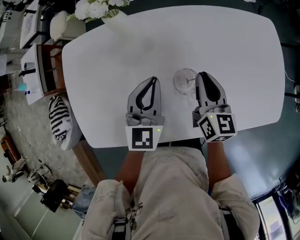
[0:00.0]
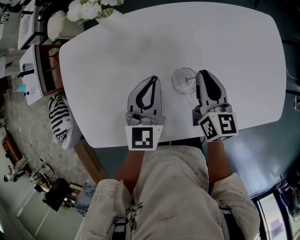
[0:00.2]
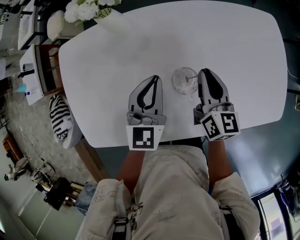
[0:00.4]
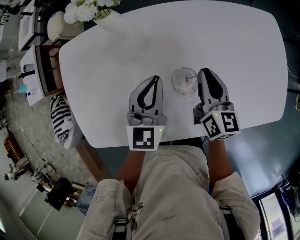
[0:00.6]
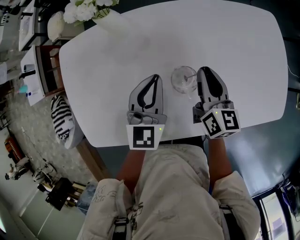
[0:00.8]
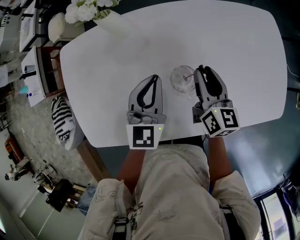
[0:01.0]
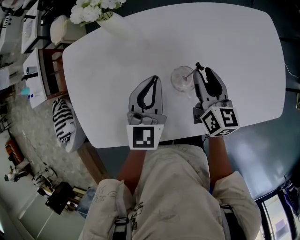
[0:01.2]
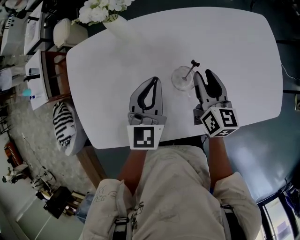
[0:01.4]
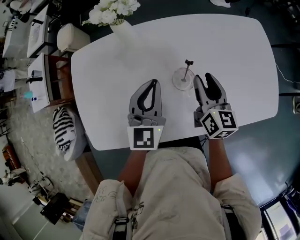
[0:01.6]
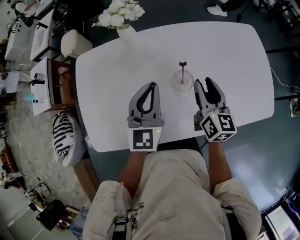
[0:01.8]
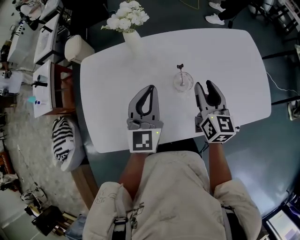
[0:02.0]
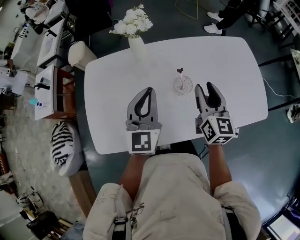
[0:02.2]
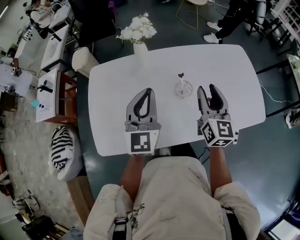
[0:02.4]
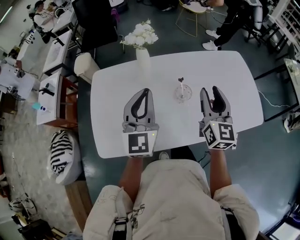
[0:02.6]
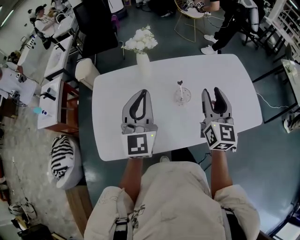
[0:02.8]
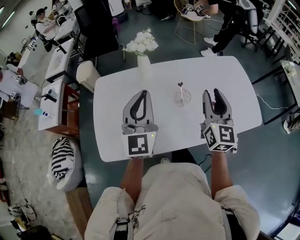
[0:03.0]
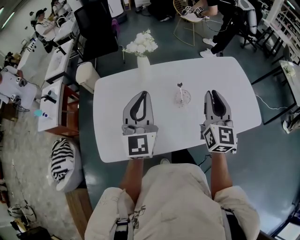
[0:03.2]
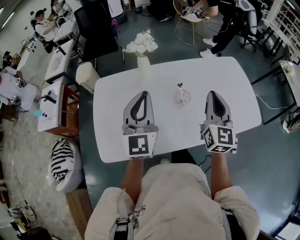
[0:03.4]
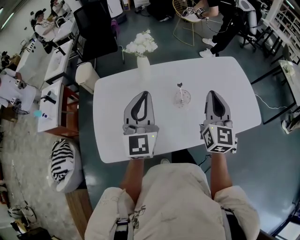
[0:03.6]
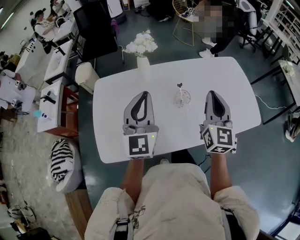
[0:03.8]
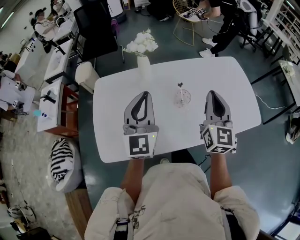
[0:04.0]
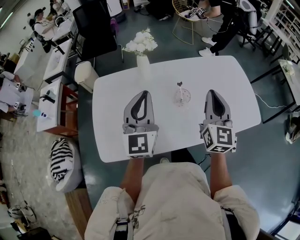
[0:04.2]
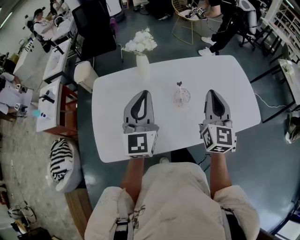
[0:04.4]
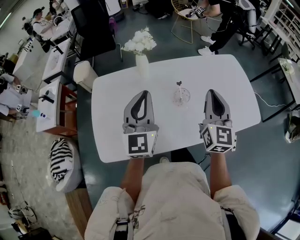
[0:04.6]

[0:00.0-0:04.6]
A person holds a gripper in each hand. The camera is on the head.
0:00.0 to 0:01.6: The right gripper moves roughly 5 cm, and opens up; the left gripper moves upward, some 5 cm.
0:01.6 to 0:03.0: Both grippers move upward and backward, some 25 cm. The right gripper rotates about 30 degrees; the left gripper turns by about 20 degrees.
0:03.0 to 0:04.6: The right gripper closes up.

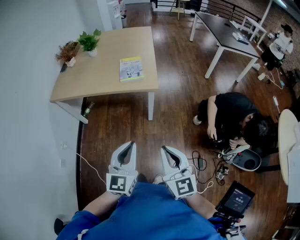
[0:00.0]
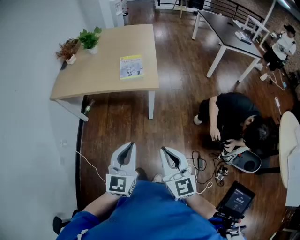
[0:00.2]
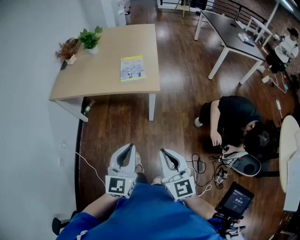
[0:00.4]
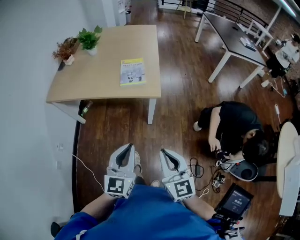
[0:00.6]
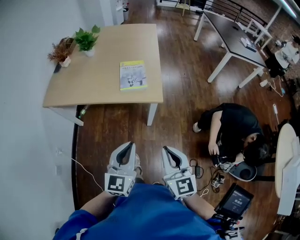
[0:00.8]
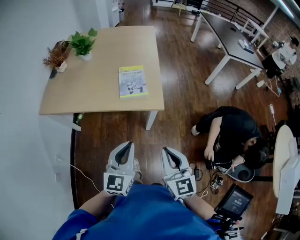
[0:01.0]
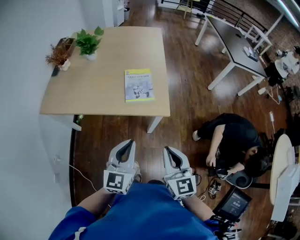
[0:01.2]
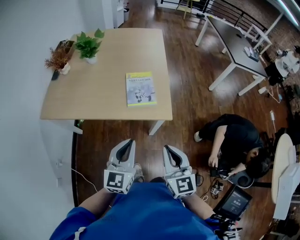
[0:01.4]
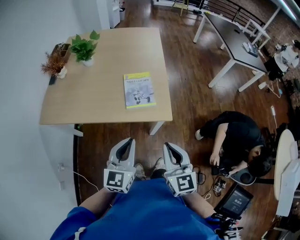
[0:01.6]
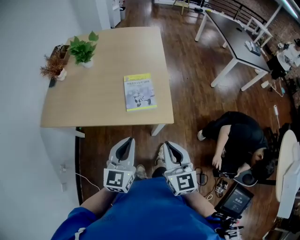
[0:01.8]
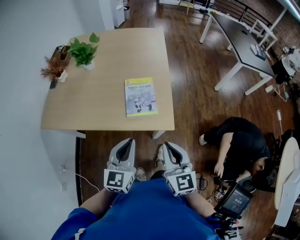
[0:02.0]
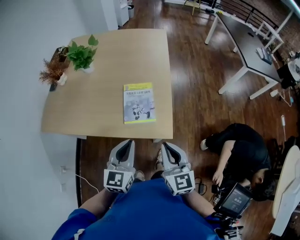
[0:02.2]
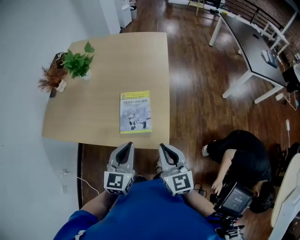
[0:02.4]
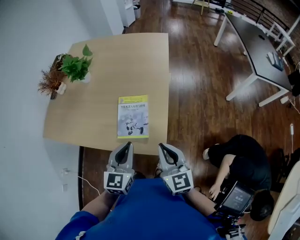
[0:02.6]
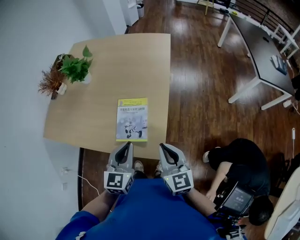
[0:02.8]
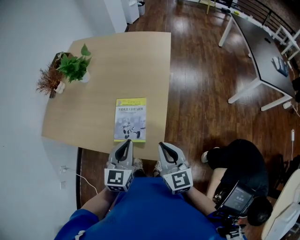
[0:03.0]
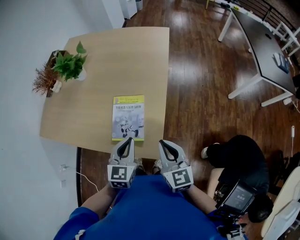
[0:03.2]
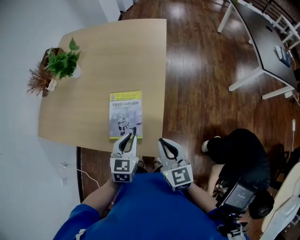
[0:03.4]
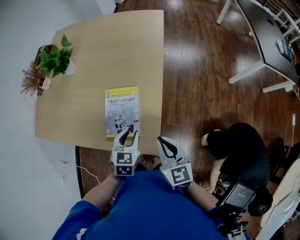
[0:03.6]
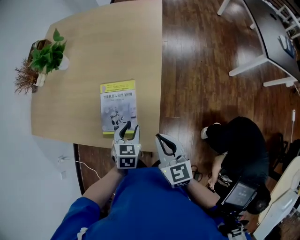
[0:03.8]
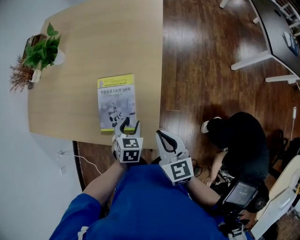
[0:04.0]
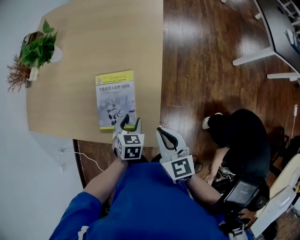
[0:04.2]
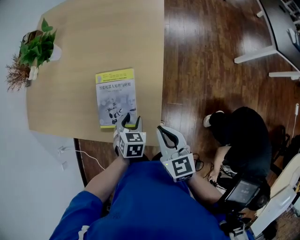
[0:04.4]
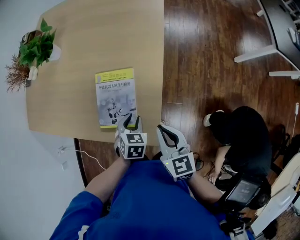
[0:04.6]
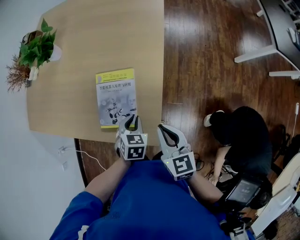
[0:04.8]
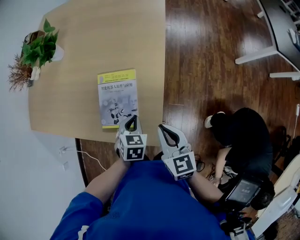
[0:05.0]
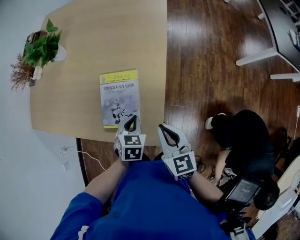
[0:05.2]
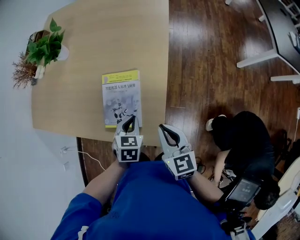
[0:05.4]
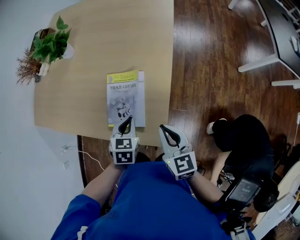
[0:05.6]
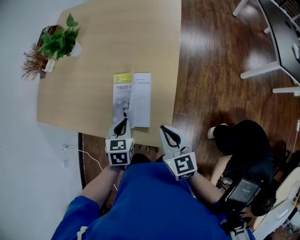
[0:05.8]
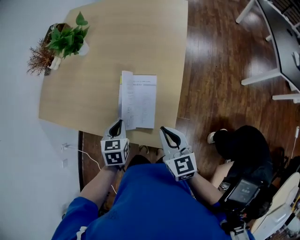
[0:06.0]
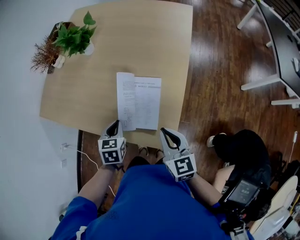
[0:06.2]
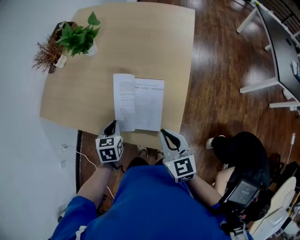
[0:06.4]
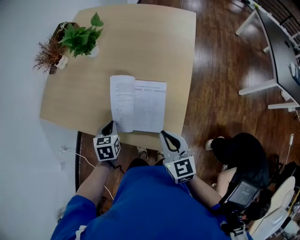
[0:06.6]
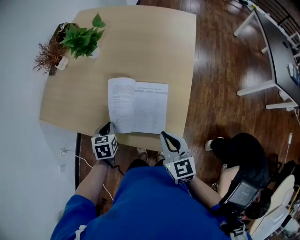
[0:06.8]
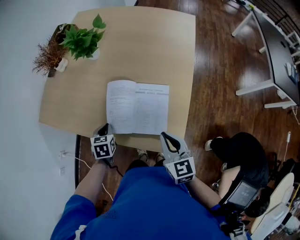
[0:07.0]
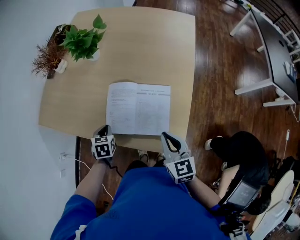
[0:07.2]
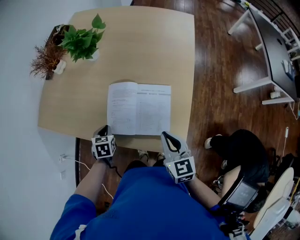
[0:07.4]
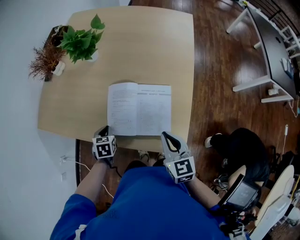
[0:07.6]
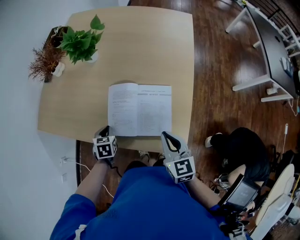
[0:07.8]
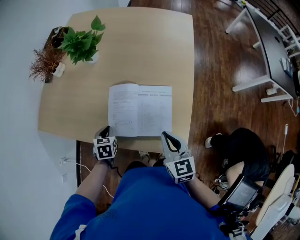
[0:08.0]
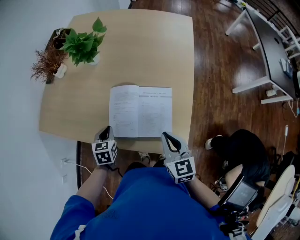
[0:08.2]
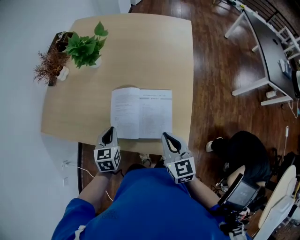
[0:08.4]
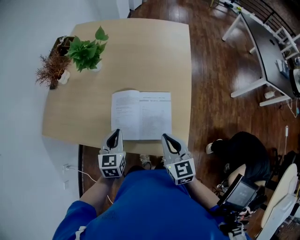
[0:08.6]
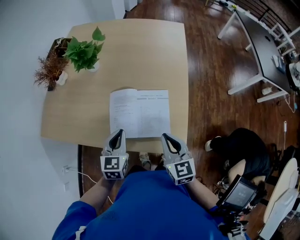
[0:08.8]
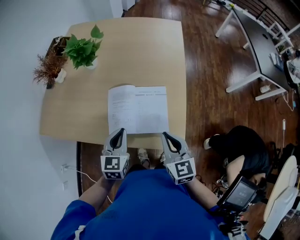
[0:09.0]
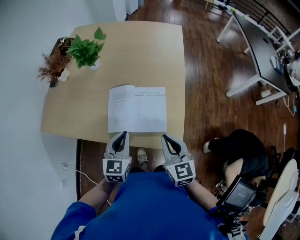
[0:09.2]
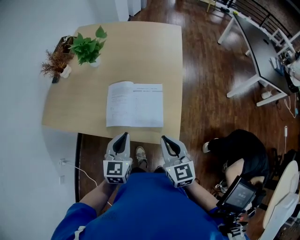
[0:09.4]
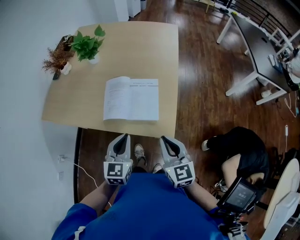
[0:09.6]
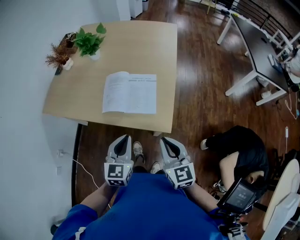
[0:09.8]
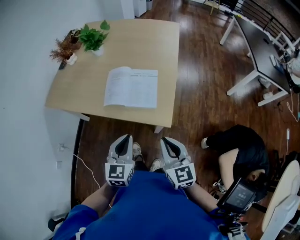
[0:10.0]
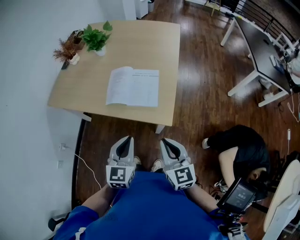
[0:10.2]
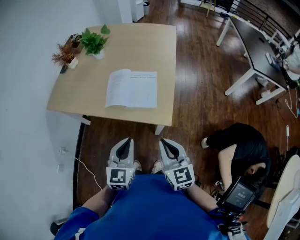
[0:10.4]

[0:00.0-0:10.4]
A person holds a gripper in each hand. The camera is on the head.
0:00.0 to 0:01.4: The two grippers go approximately 30 cm forward.
0:01.4 to 0:03.0: Both grippers travel together forward and to the right, some 30 cm.
0:03.0 to 0:04.4: The right gripper heads downward, covering approximately 10 cm; the left gripper travels downward by about 20 cm, points its fingers some 40 degrees further downward, and opens its fingers.
0:04.4 to 0:06.0: The left gripper goes roughly 15 cm to the left and upward, and closes up. The right gripper is displaced to the left by approximately 5 cm.
0:06.0 to 0:07.4: The right gripper moves to the left, about 10 cm. Meanwhile the left gripper shifts about 20 cm to the left.
0:07.4 to 0:09.0: The left gripper is displaced upward and to the right by approximately 15 cm, and tips its fingers upward by roughly 30 degrees. The right gripper shifts by about 5 cm.
0:09.0 to 0:10.4: Both grippers travel together backward, approximately 25 cm.

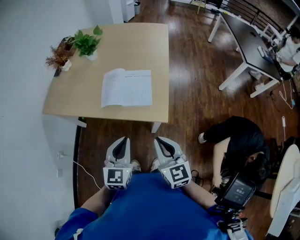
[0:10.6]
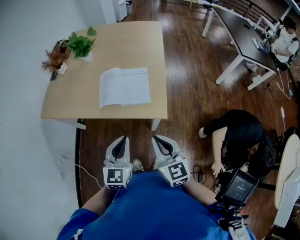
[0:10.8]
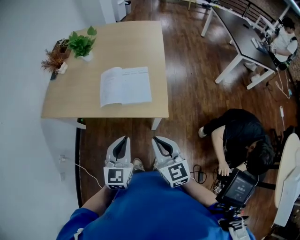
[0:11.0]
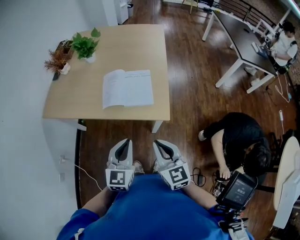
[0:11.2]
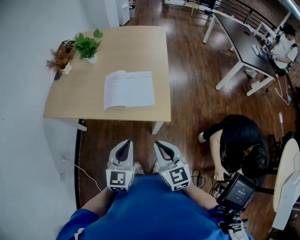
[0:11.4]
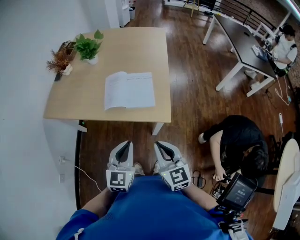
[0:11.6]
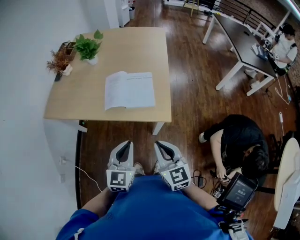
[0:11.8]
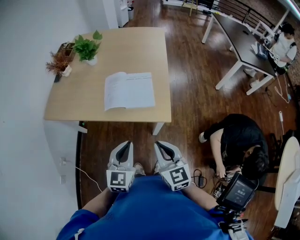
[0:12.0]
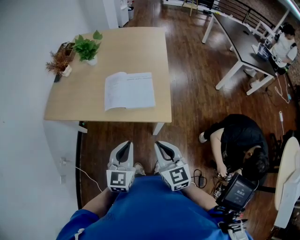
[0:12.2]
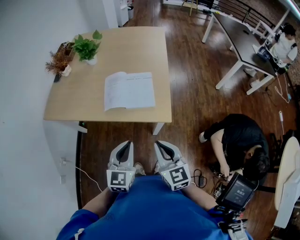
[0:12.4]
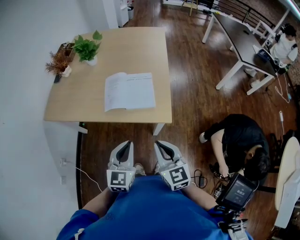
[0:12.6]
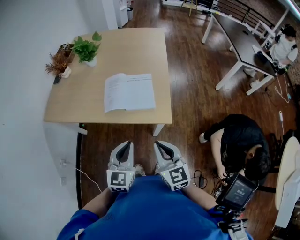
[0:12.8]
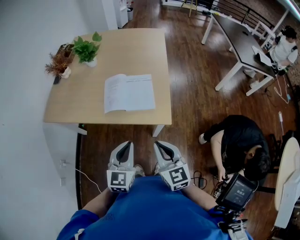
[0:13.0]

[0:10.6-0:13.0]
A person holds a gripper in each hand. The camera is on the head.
0:10.6 to 0:11.8: The grippers stay close to where they were, moving slightly.
0:11.8 to 0:13.0: Neither gripper changes place.

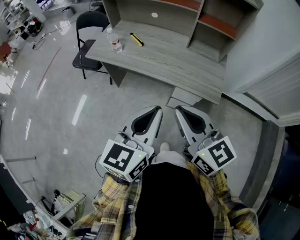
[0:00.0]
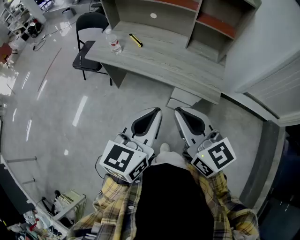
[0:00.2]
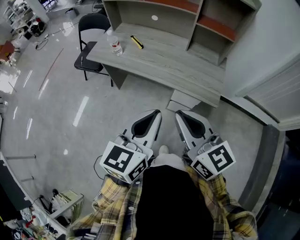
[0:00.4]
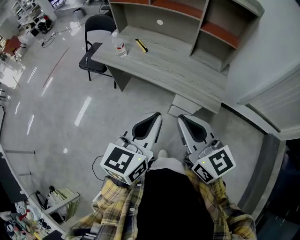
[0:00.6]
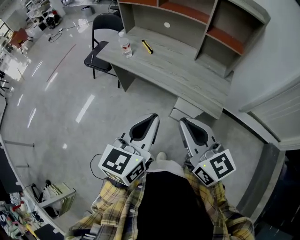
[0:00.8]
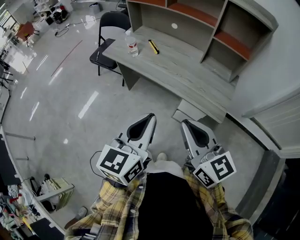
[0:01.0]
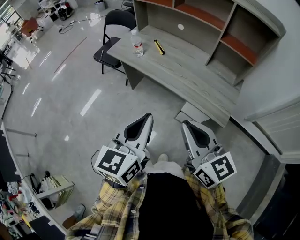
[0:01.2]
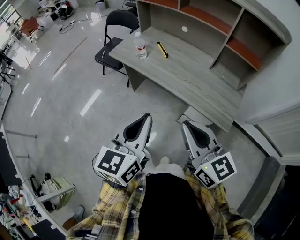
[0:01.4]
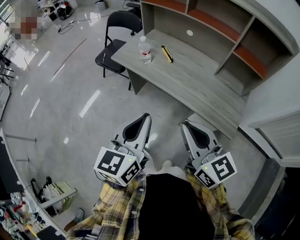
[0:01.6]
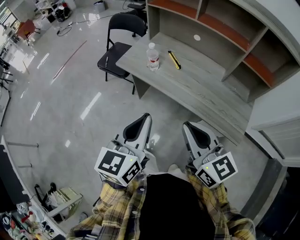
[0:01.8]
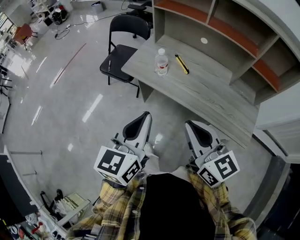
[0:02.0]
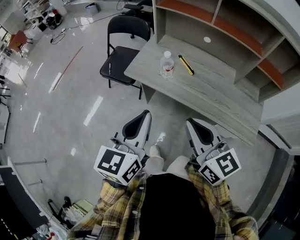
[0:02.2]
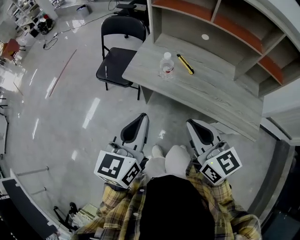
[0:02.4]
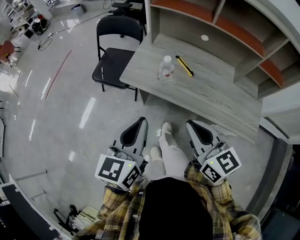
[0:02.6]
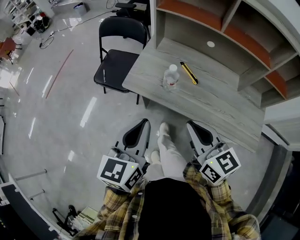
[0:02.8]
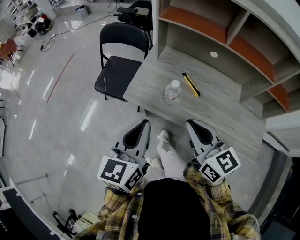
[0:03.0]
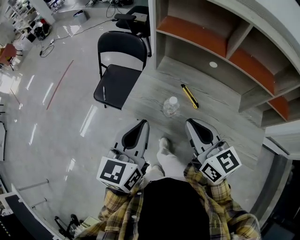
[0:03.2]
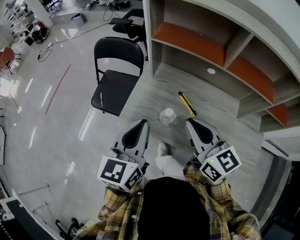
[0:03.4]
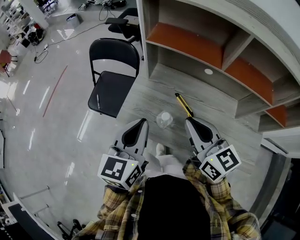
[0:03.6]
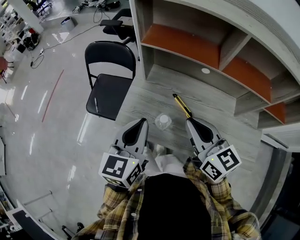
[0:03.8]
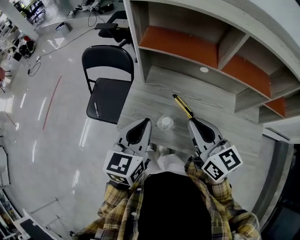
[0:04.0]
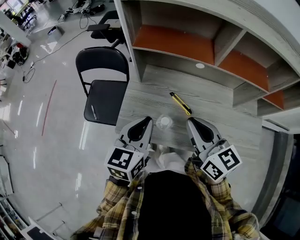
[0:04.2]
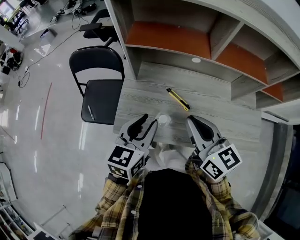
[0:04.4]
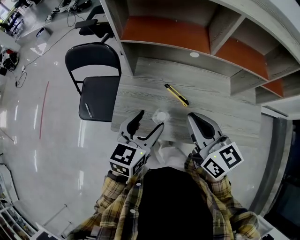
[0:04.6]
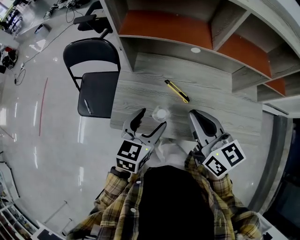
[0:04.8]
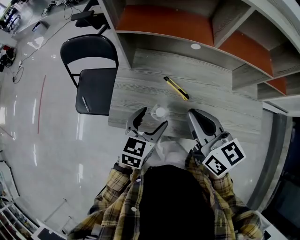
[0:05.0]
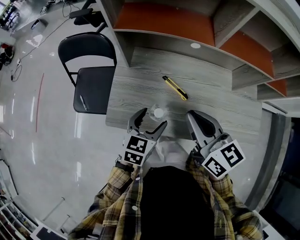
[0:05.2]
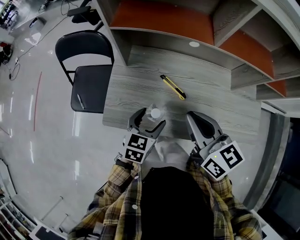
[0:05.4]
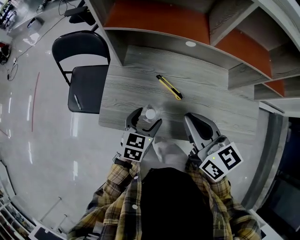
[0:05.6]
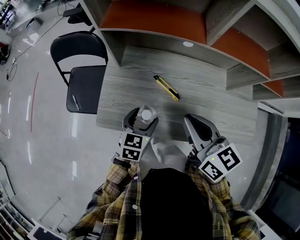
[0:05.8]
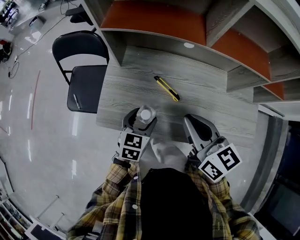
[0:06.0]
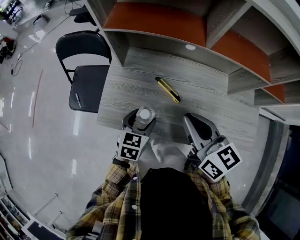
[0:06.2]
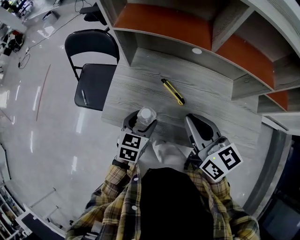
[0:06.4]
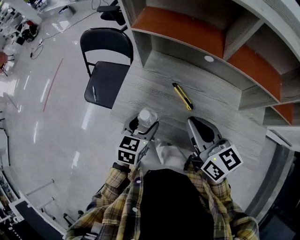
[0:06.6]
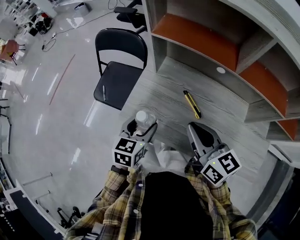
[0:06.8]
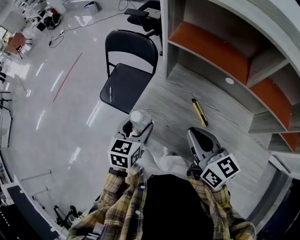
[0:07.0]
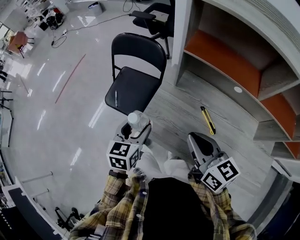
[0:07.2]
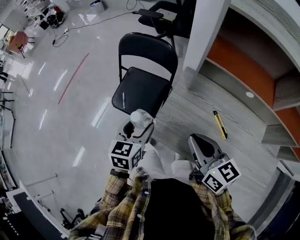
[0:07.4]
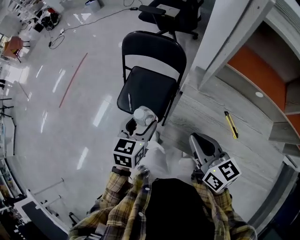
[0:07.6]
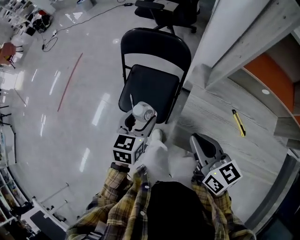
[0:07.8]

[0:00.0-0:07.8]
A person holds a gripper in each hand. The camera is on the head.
0:00.0 to 0:01.6: The left gripper travels to the left and forward by roughly 15 cm. Meanwhile the right gripper travels forward by approximately 5 cm.
0:01.6 to 0:03.2: The two grippers travel together, forward and to the left, about 40 cm.
0:03.2 to 0:04.6: The right gripper travels forward by about 10 cm. The left gripper shifts roughly 15 cm forward, downward and to the right, rotates some 30 degrees, and opens up.
0:04.6 to 0:06.2: The right gripper ends up about 5 cm from where it was. The left gripper shifts some 15 cm downward.
0:06.2 to 0:07.8: The left gripper moves to the left and forward, some 40 cm. Meanwhile the right gripper shifts approximately 30 cm to the left.
